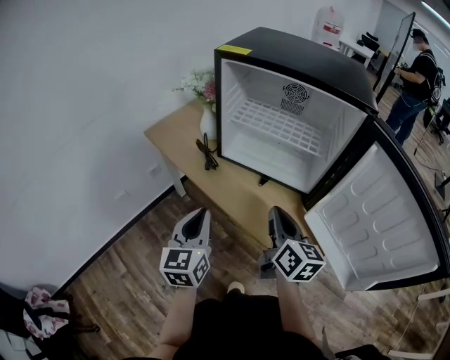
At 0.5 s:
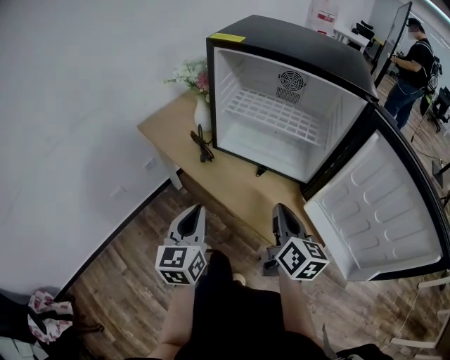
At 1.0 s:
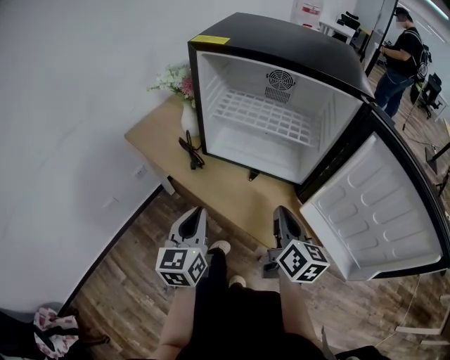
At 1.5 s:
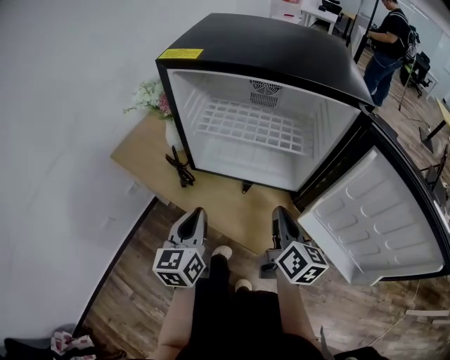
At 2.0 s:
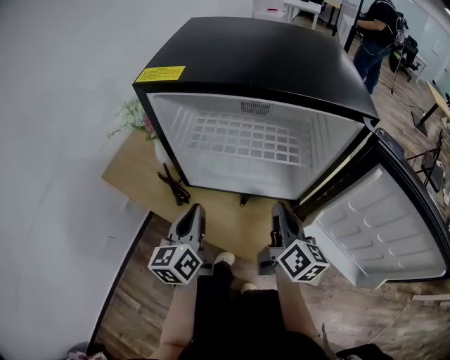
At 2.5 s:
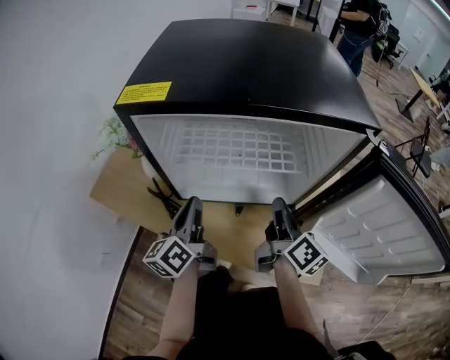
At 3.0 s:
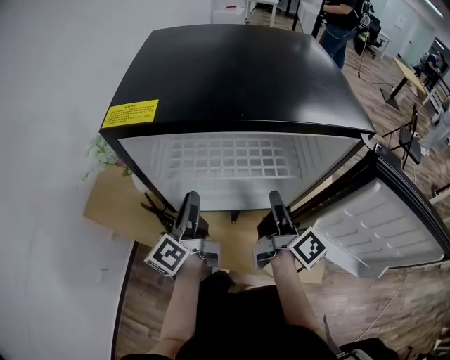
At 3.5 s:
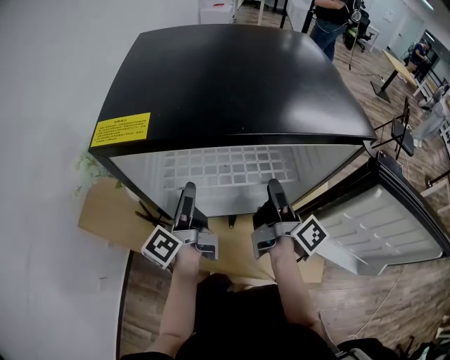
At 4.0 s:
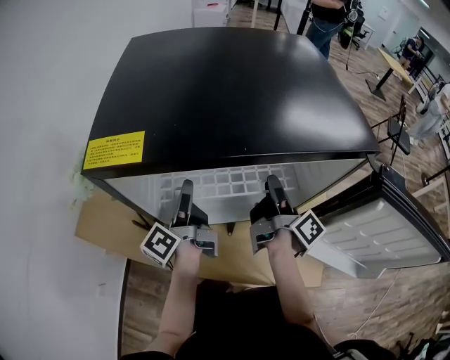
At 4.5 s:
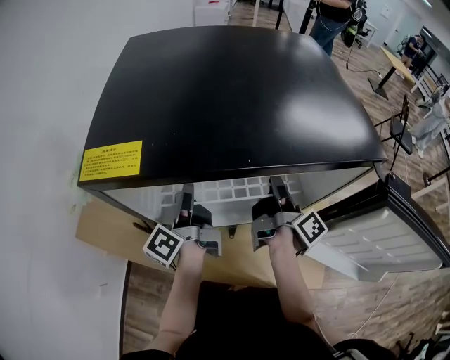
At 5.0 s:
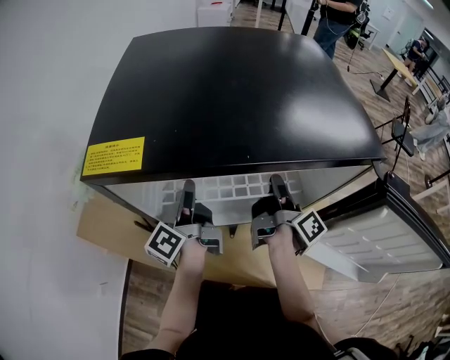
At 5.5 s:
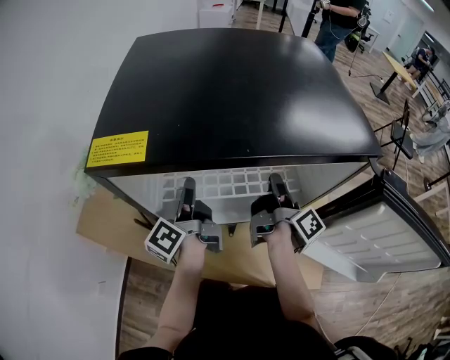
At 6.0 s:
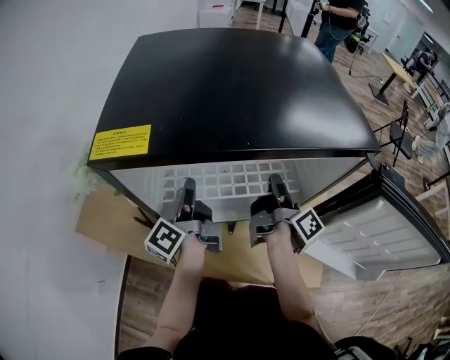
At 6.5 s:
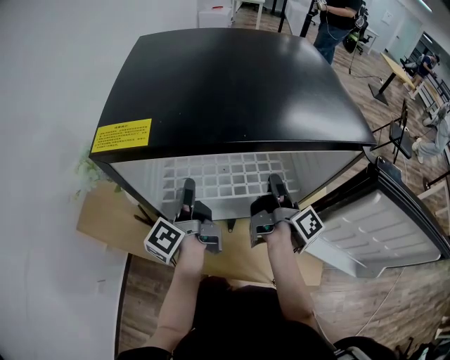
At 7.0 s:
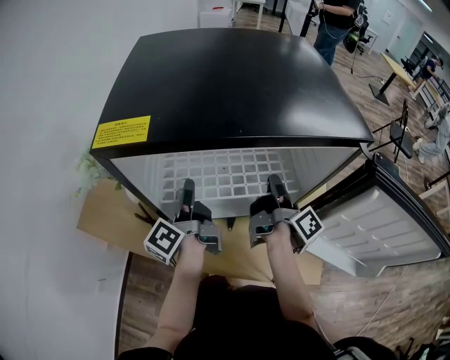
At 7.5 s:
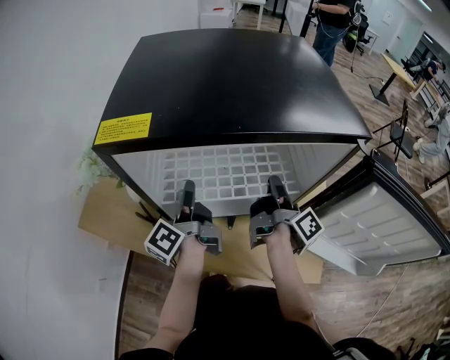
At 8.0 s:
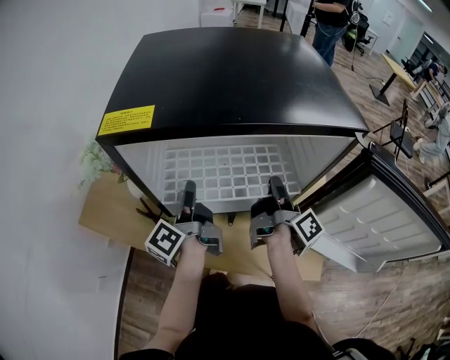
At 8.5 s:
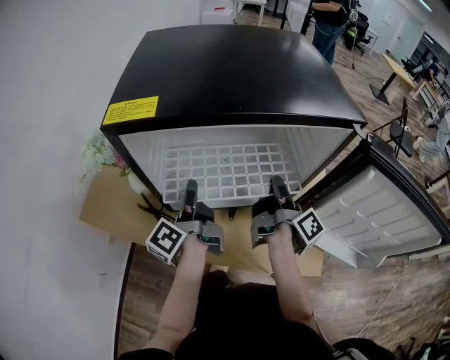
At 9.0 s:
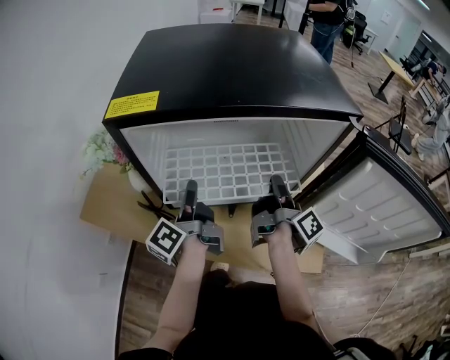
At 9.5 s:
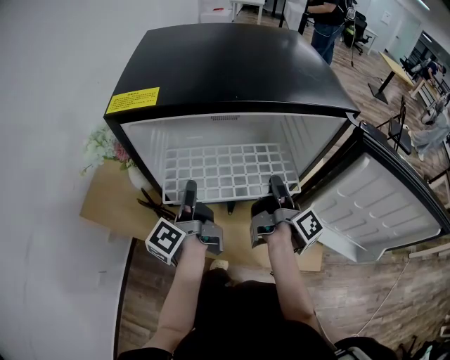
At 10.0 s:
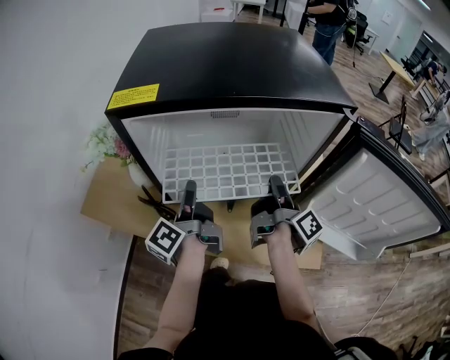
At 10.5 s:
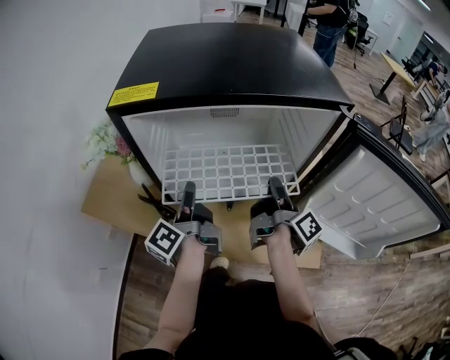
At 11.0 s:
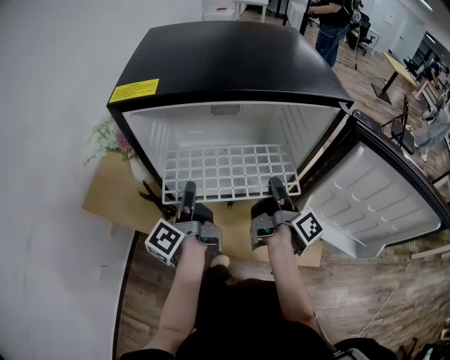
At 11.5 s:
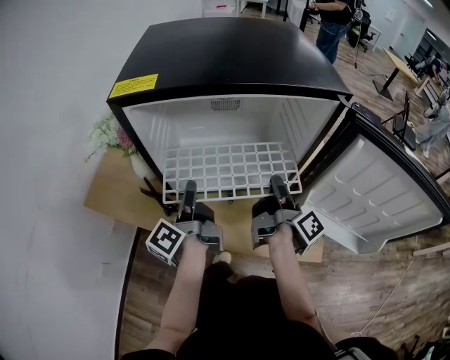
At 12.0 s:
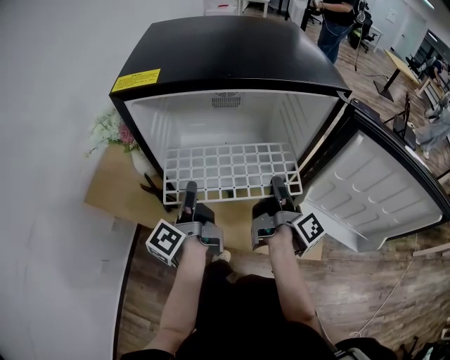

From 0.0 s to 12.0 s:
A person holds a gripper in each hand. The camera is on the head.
From 0.0 s to 2.0 s: The right gripper is displaced forward and to the right by some 15 cm, and rotates approximately 20 degrees. The left gripper travels forward by approximately 20 cm, and swivels roughly 20 degrees.
From 2.0 s to 4.0 s: The grippers both shift forward by about 15 cm. The right gripper rotates around the line of its fingers by roughly 40 degrees, clockwise from behind, and opens its fingers, while the left gripper rolls counterclockwise, seen from behind, by roughly 50 degrees, and opens its fingers.
From 4.0 s to 6.0 s: The left gripper closes up, while the right gripper closes up.
From 6.0 s to 10.0 s: The grippers make only small movements.
From 10.0 s to 12.0 s: Both grippers stay about where they are.

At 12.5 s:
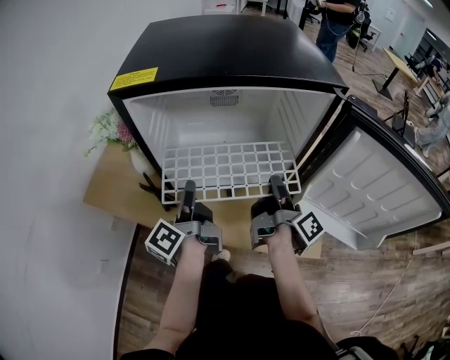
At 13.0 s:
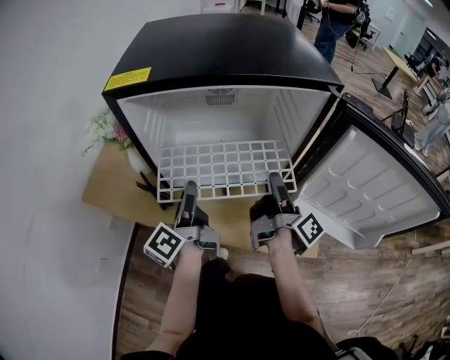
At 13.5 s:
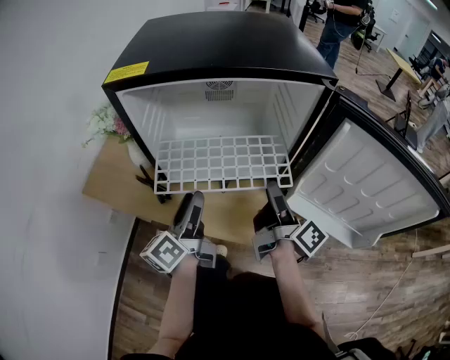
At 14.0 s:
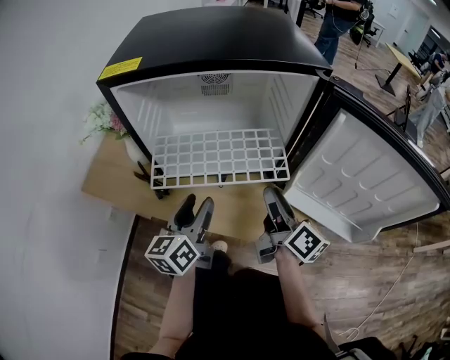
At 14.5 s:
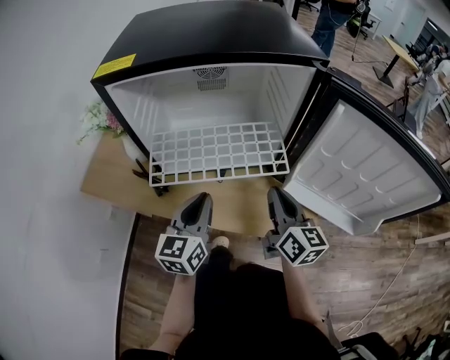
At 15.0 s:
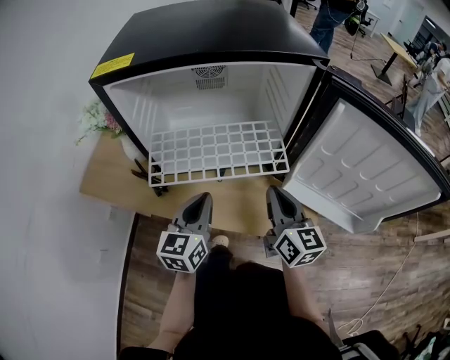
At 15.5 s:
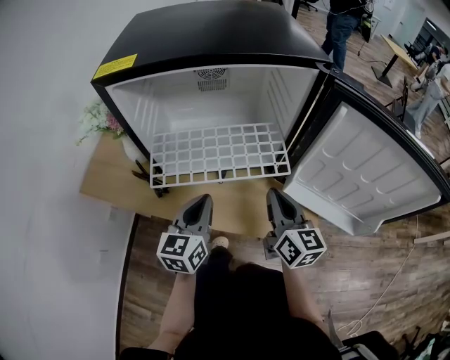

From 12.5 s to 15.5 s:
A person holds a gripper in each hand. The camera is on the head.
From 12.5 s to 14.0 s: The right gripper shifts about 5 cm backward, turns by approximately 40 degrees, and opens up. The left gripper is displaced backward and to the right by roughly 10 cm, rolls clockwise, seen from behind, by some 40 degrees, and opens.
From 14.0 s to 15.5 s: The right gripper swivels some 30 degrees, and closes. Meanwhile the left gripper closes up.

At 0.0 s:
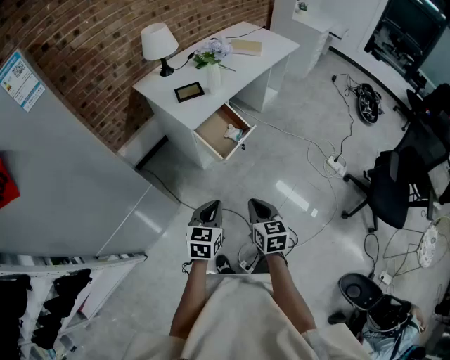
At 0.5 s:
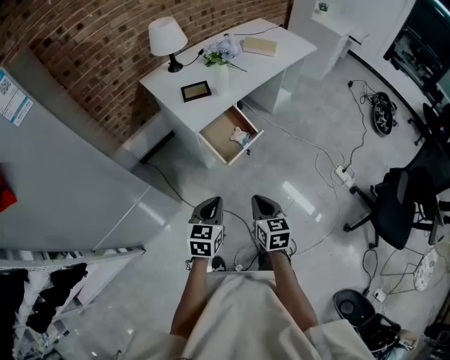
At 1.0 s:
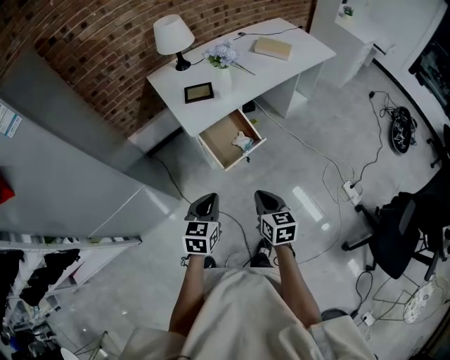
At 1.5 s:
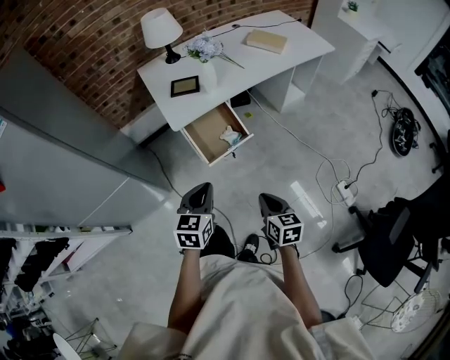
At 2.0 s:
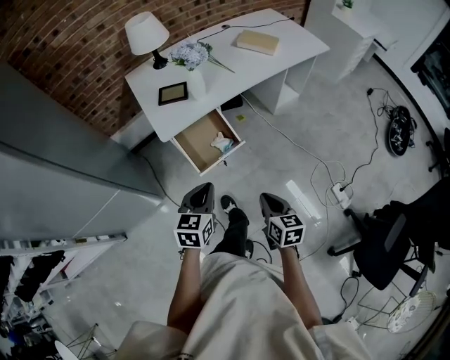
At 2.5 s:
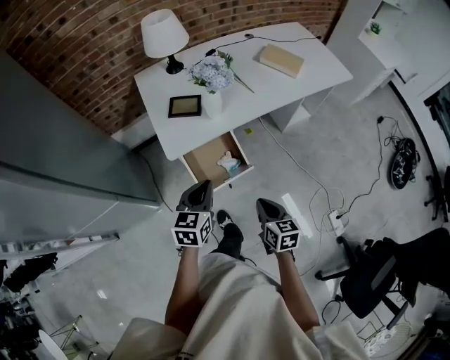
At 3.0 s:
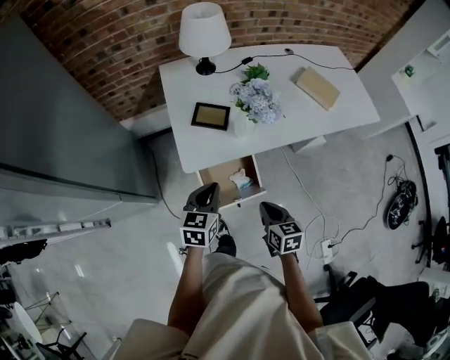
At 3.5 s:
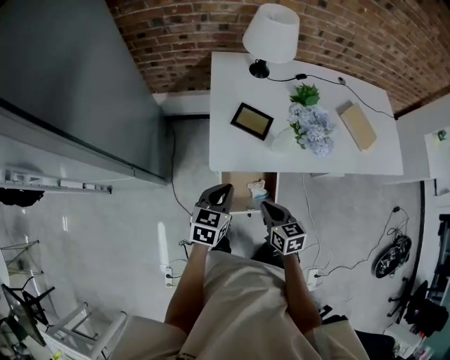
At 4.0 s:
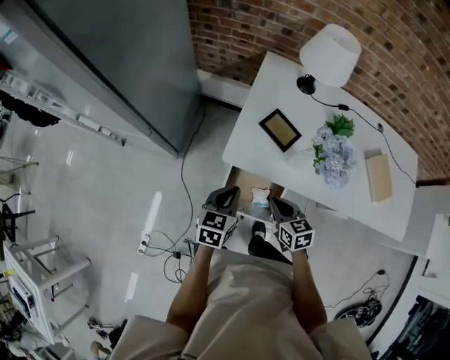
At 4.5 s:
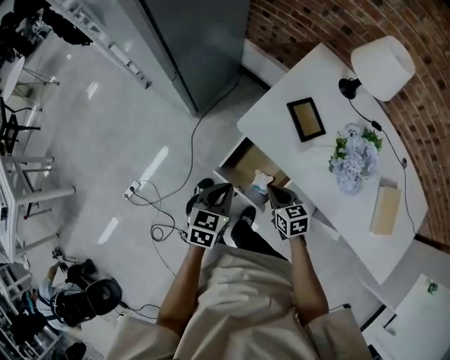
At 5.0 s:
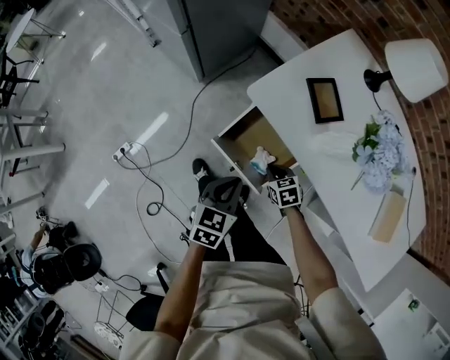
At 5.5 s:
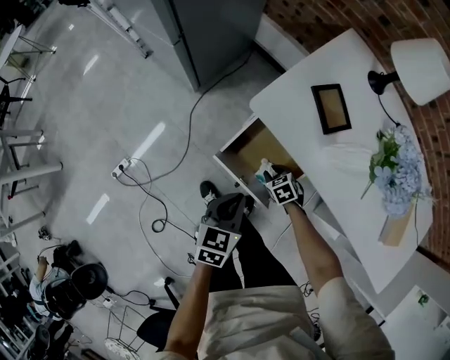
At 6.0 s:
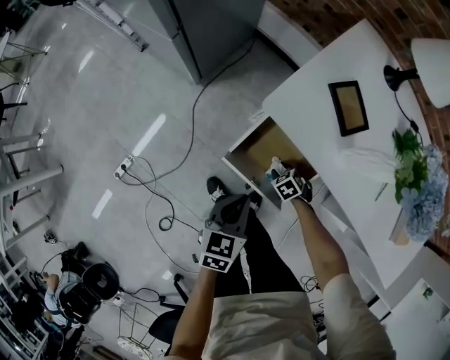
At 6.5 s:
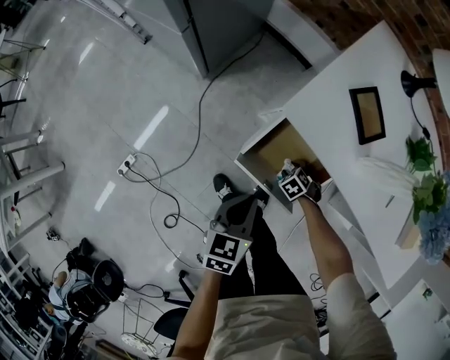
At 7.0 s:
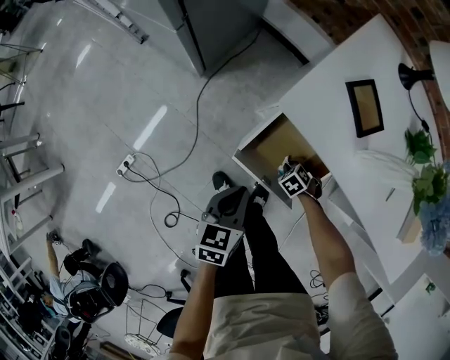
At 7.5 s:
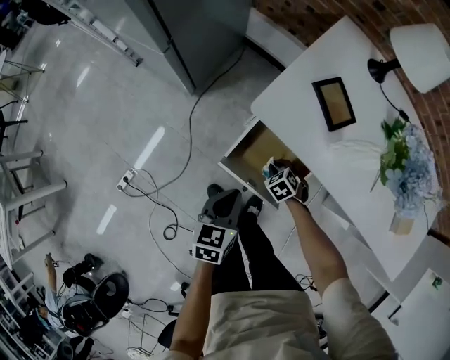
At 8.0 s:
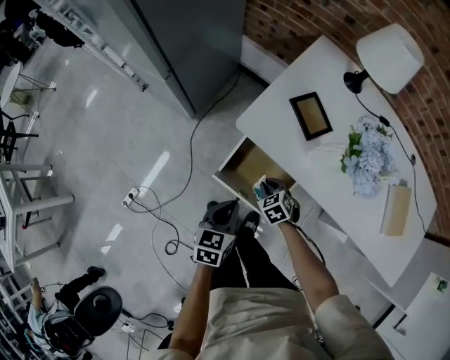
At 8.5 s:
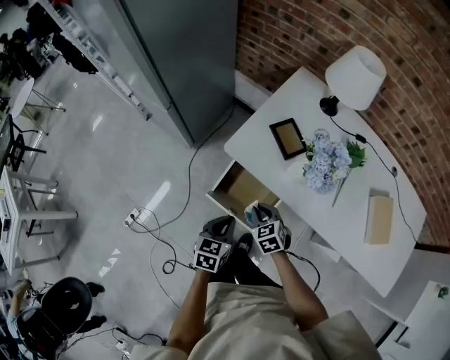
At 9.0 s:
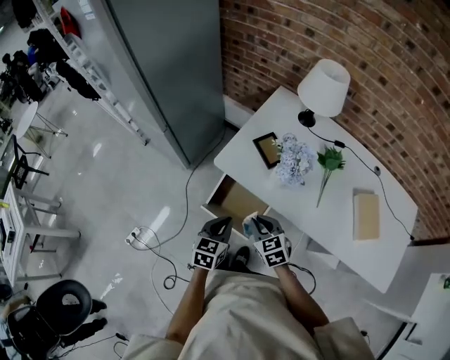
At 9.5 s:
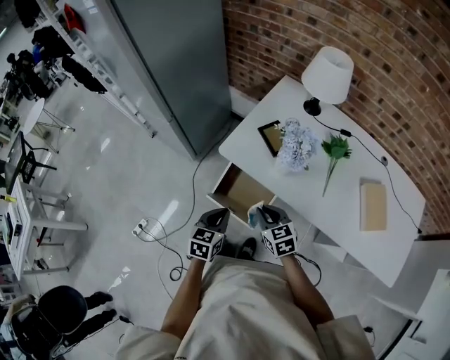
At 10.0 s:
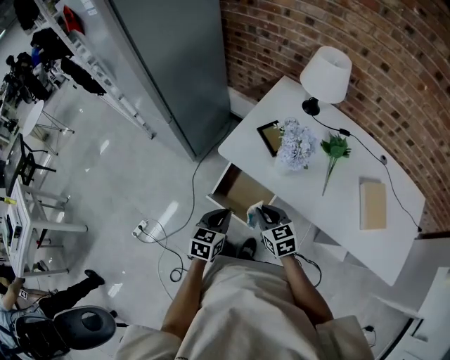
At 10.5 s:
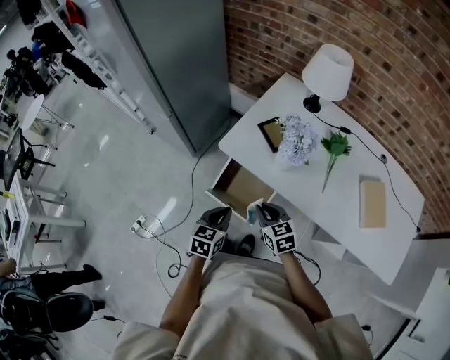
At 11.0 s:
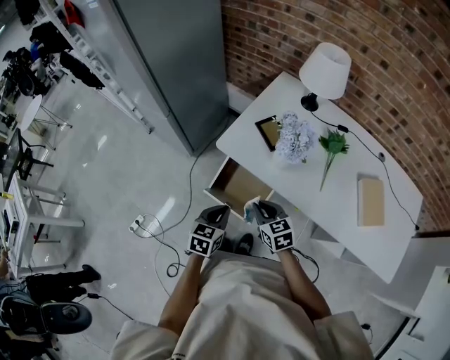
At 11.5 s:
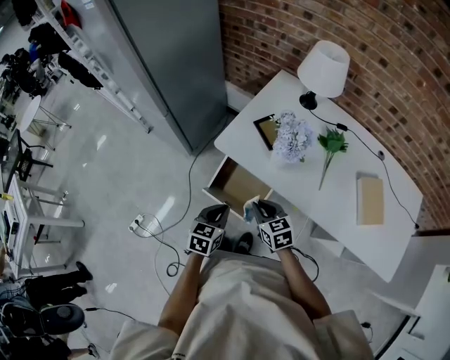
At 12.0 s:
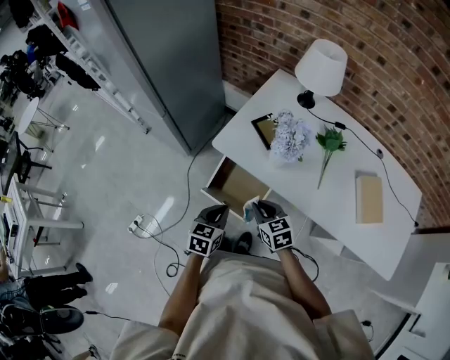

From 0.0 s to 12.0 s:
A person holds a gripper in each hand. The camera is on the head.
From 0.0 s to 2.0 s: Both grippers travel together to the right and forward, about 35 cm.
From 2.0 s to 4.0 s: The left gripper ends up some 30 cm from where it was, and swivels about 40 degrees, while the right gripper ends up roughly 40 cm from where it was, and changes its angle by roughly 60 degrees.
From 4.0 s to 6.0 s: The left gripper goes approximately 15 cm downward, and changes its angle by some 20 degrees; the right gripper is displaced downward by about 35 cm, angles its fingers downward, by roughly 40 degrees, and opens.
From 6.0 s to 8.0 s: The right gripper heads upward, covering roughly 15 cm, and closes its fingers.
From 8.0 s to 10.0 s: The left gripper heads upward and to the right, covering some 10 cm, while the right gripper is displaced upward by some 20 cm, and rotates about 30 degrees.
From 10.0 s to 12.0 s: The grippers make only small movements.
